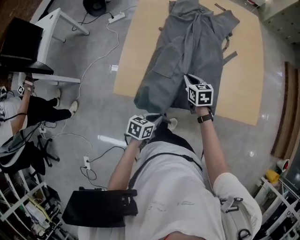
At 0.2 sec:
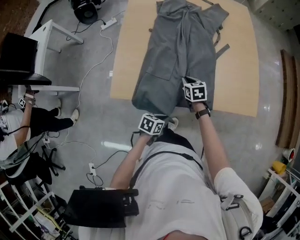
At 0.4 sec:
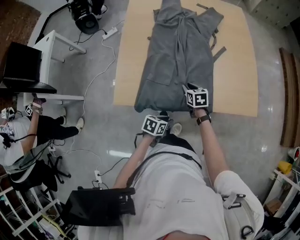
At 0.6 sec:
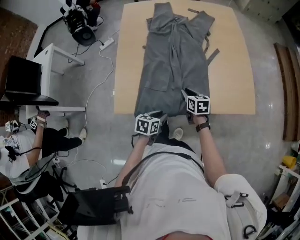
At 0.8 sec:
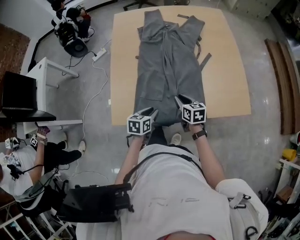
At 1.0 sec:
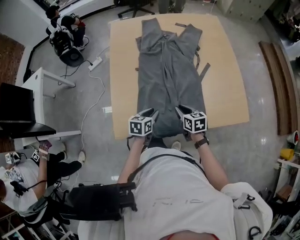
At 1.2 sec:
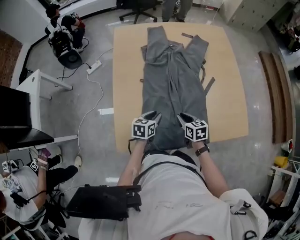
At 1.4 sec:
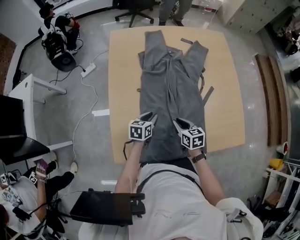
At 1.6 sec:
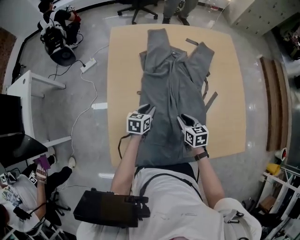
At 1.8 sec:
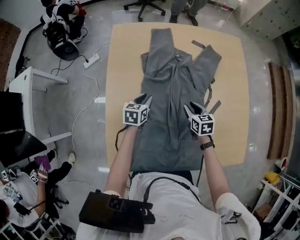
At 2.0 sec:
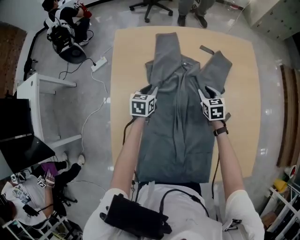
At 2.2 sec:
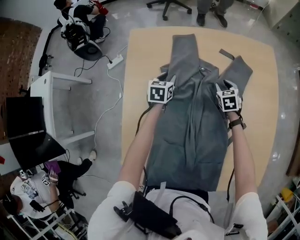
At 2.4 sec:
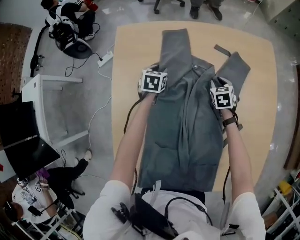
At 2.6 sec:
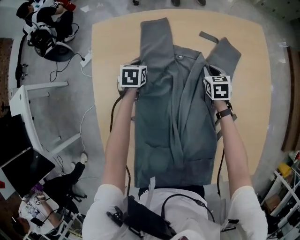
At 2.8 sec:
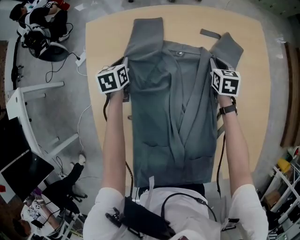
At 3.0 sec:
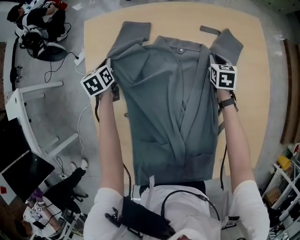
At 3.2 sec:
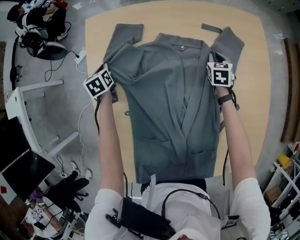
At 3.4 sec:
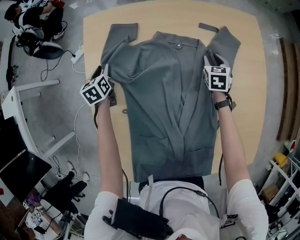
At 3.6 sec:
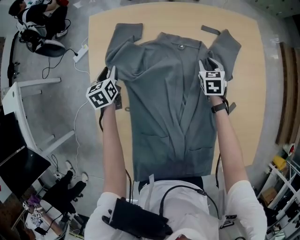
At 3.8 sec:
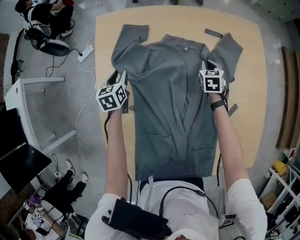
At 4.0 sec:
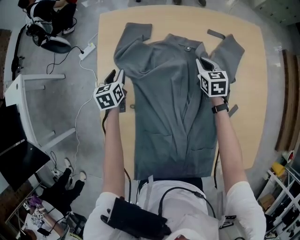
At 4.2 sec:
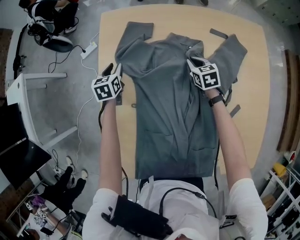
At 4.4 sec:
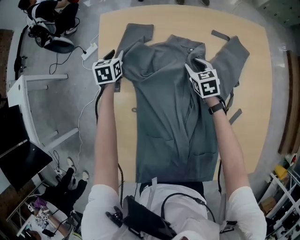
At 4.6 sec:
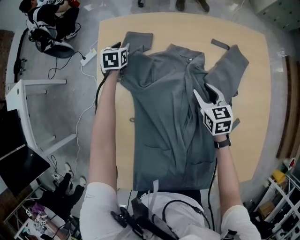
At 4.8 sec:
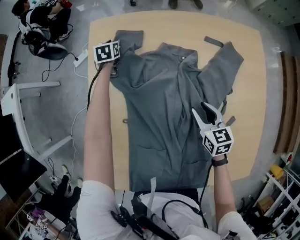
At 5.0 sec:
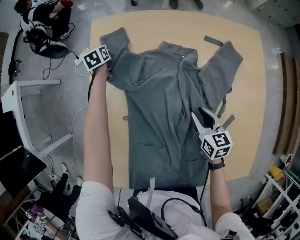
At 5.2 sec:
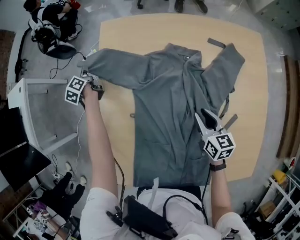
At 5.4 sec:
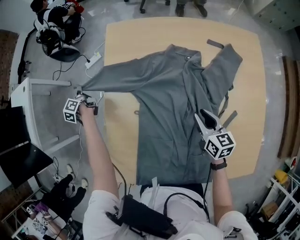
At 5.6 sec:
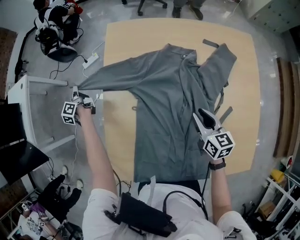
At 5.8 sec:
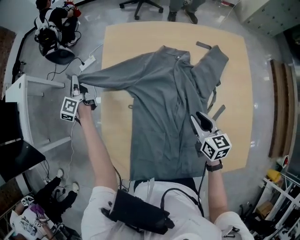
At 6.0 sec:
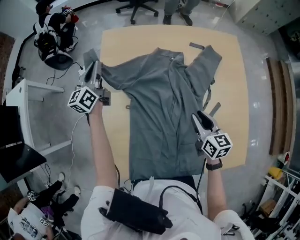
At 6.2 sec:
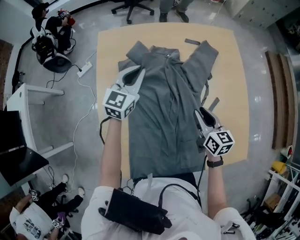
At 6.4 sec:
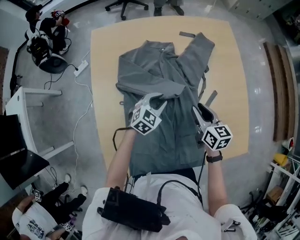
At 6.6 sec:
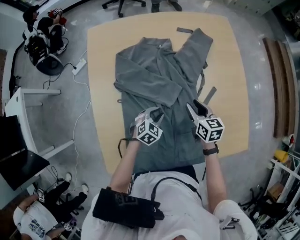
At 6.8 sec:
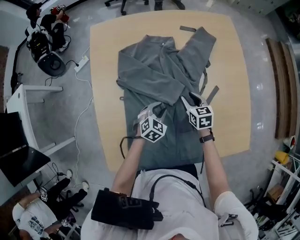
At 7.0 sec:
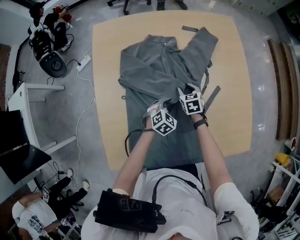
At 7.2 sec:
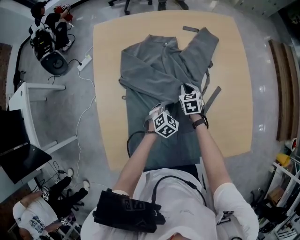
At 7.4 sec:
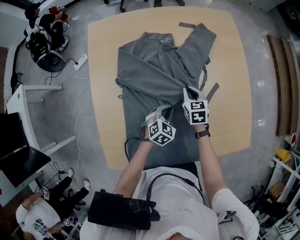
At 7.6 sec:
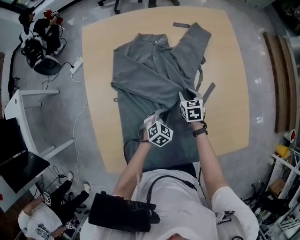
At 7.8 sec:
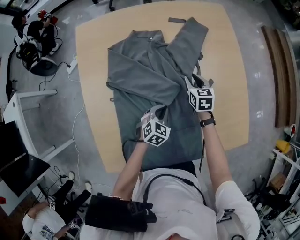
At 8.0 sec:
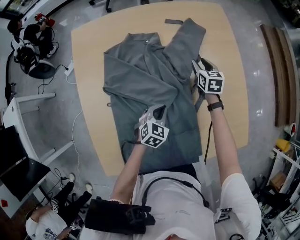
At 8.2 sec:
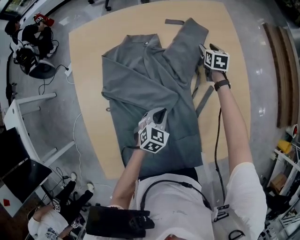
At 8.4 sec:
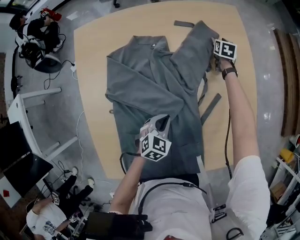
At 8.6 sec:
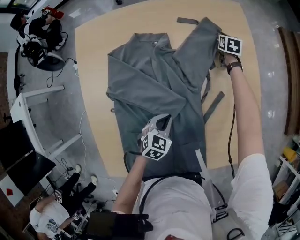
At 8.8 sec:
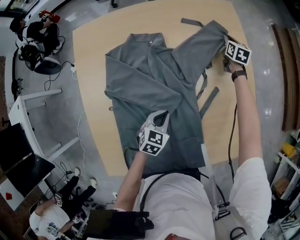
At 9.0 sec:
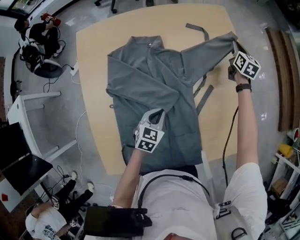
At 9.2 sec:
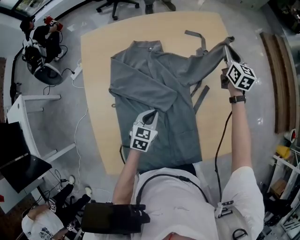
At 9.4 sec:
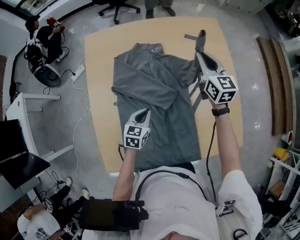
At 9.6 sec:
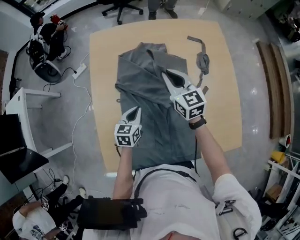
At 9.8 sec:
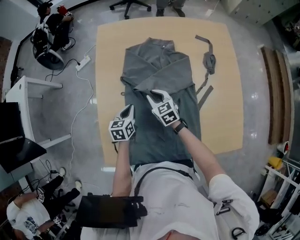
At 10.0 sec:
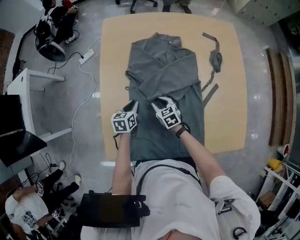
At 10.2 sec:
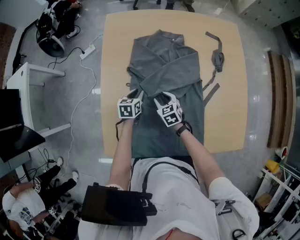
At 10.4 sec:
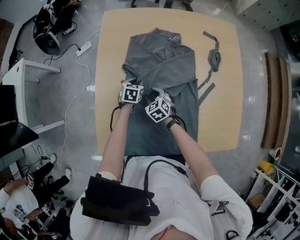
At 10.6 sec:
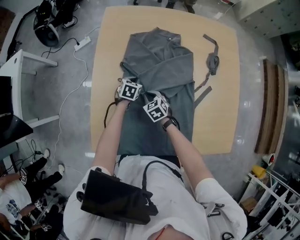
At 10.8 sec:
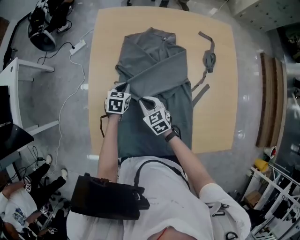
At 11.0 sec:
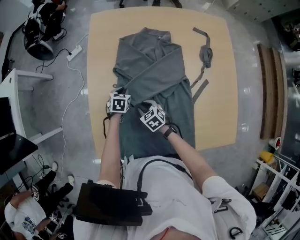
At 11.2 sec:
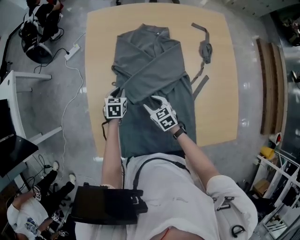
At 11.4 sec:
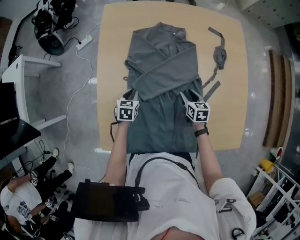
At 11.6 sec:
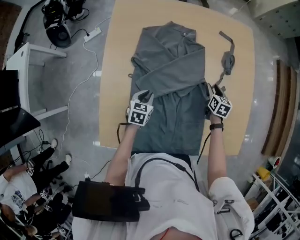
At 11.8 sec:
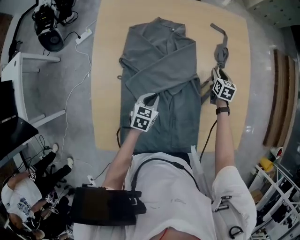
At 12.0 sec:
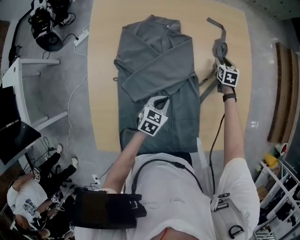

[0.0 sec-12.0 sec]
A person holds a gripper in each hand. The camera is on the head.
0.0 sec to 1.6 sec: The right gripper shifts roughly 15 cm forward. Meanwhile the left gripper travels forward by some 40 cm, and opens its fingers.
1.6 sec to 3.0 sec: The right gripper travels forward by approximately 40 cm, and swivels some 20 degrees; the left gripper travels forward and to the left by approximately 35 cm, and swivels roughly 30 degrees.
3.0 sec to 4.4 sec: The right gripper shifts roughly 15 cm to the left, and swivels approximately 20 degrees. Meanwhile the left gripper reaches approximately 10 cm backward, then returns, and opens its fingers.
4.4 sec to 6.0 sec: The right gripper moves backward and upward, about 30 cm, and changes its angle by about 30 degrees. Meanwhile the left gripper moves left and right over roughly 35 cm, changing direction 2 times, tilts its fingers about 40 degrees upward, and closes its fingers.
6.0 sec to 7.6 sec: The right gripper goes up and down, some 20 cm each way, reversing 2 times, and changes its angle by about 30 degrees, while the left gripper moves roughly 50 cm, points its fingers approximately 50 degrees further downward, and opens and closes again.
7.6 sec to 9.0 sec: The right gripper is displaced forward and to the right by approximately 35 cm, and swivels some 30 degrees. Meanwhile the left gripper goes about 5 cm upward.
9.0 sec to 10.4 sec: The right gripper shifts by some 60 cm, and rotates some 60 degrees. The left gripper shifts by roughly 20 cm, swivels roughly 30 degrees, and opens up.
10.4 sec to 12.0 sec: The left gripper swings up and down, approximately 5 cm each way, with 2 reversals, rotates approximately 20 degrees, and closes. The right gripper goes upward and returns, roughly 5 cm each way, and swivels roughly 40 degrees.

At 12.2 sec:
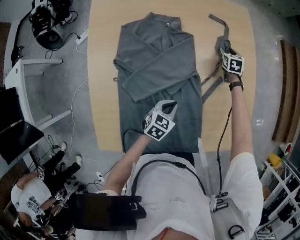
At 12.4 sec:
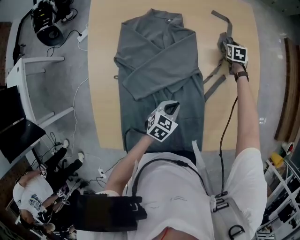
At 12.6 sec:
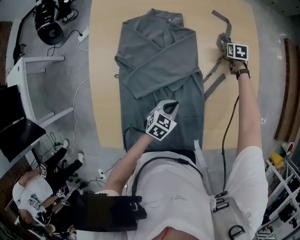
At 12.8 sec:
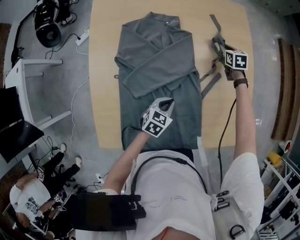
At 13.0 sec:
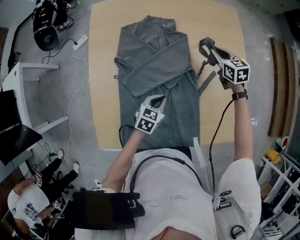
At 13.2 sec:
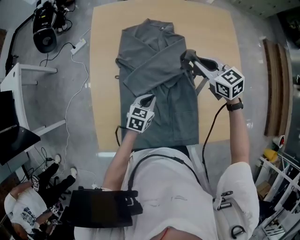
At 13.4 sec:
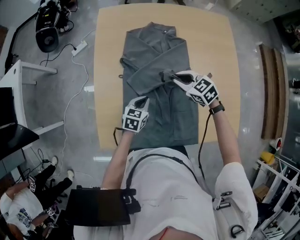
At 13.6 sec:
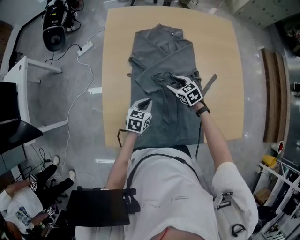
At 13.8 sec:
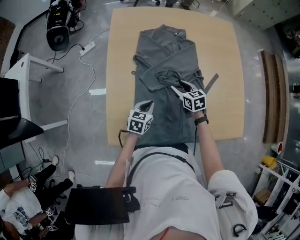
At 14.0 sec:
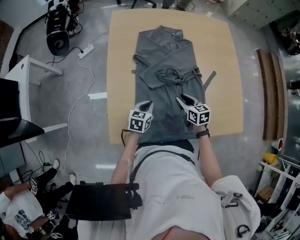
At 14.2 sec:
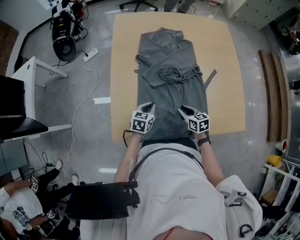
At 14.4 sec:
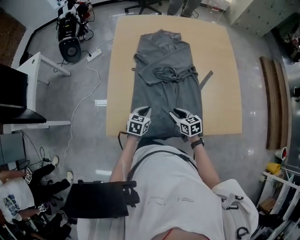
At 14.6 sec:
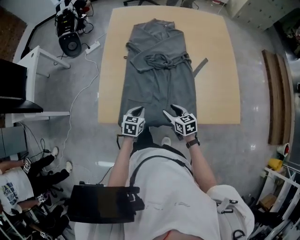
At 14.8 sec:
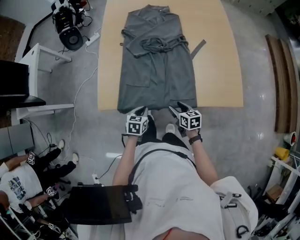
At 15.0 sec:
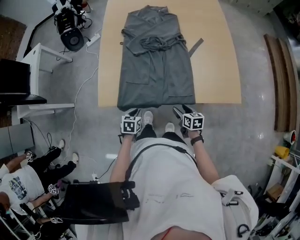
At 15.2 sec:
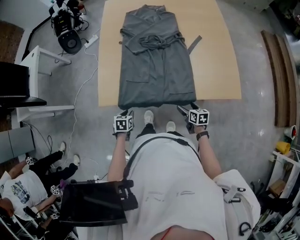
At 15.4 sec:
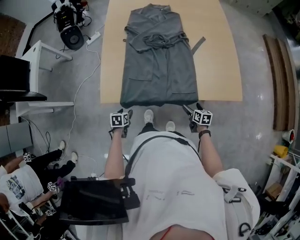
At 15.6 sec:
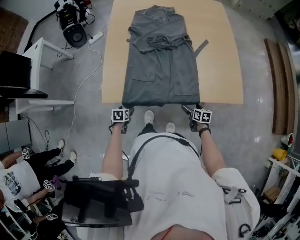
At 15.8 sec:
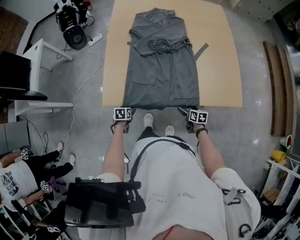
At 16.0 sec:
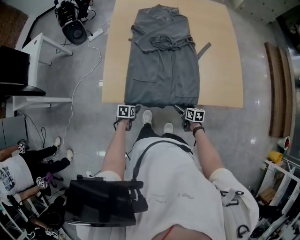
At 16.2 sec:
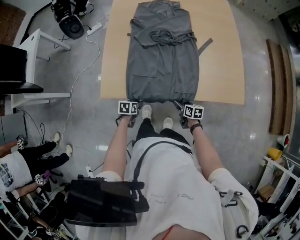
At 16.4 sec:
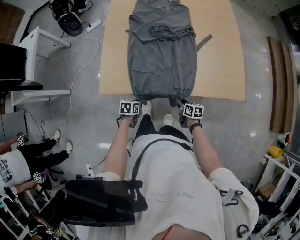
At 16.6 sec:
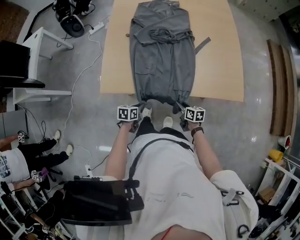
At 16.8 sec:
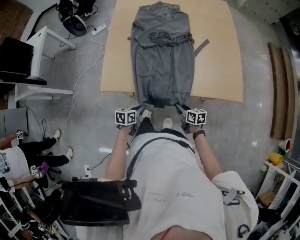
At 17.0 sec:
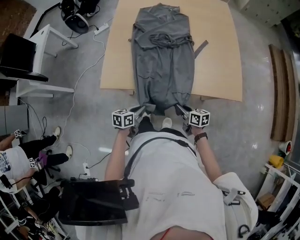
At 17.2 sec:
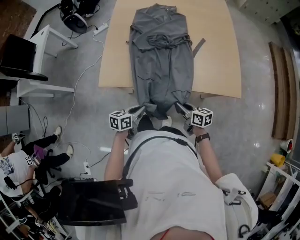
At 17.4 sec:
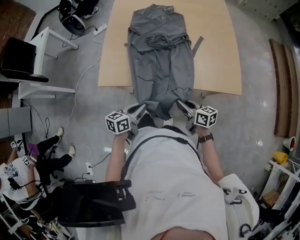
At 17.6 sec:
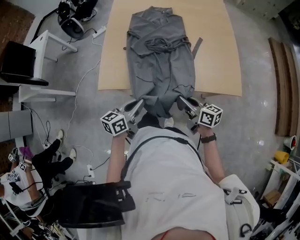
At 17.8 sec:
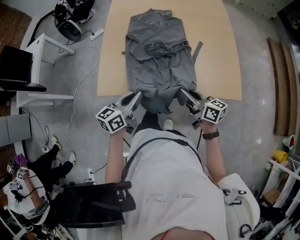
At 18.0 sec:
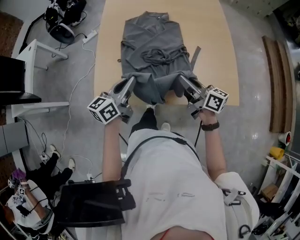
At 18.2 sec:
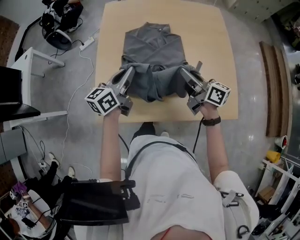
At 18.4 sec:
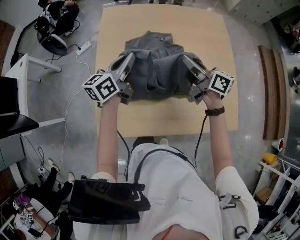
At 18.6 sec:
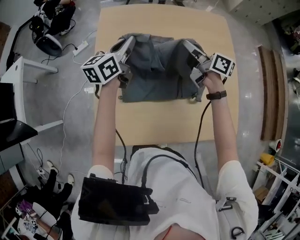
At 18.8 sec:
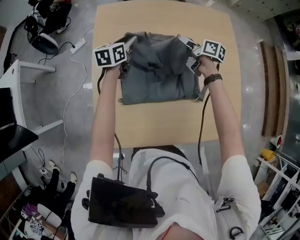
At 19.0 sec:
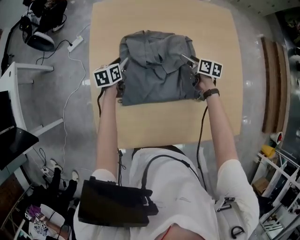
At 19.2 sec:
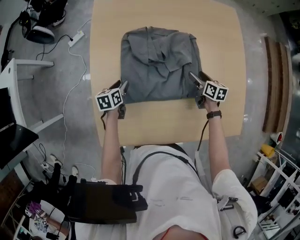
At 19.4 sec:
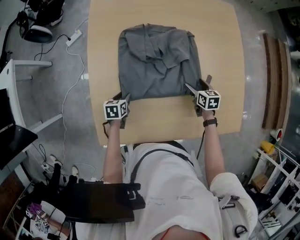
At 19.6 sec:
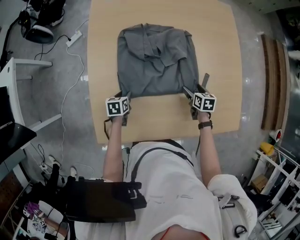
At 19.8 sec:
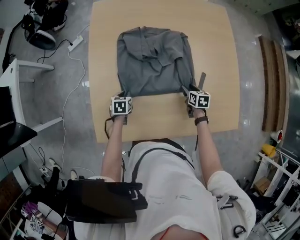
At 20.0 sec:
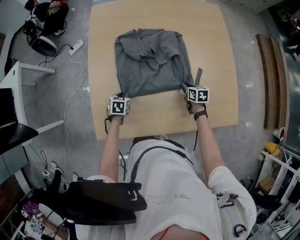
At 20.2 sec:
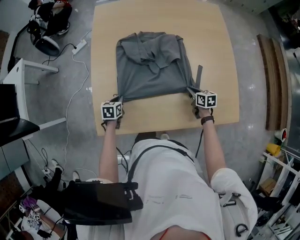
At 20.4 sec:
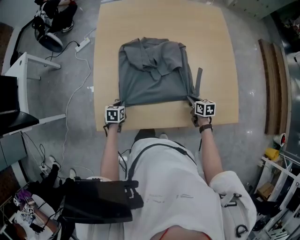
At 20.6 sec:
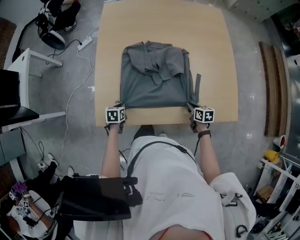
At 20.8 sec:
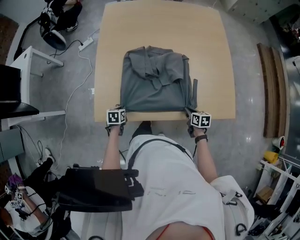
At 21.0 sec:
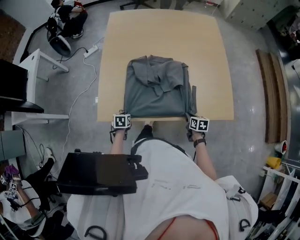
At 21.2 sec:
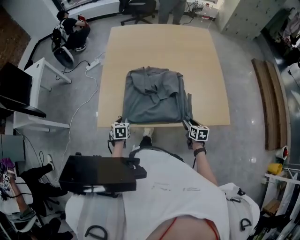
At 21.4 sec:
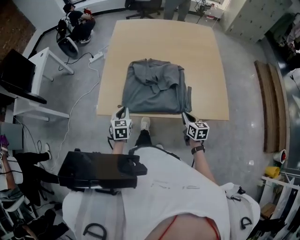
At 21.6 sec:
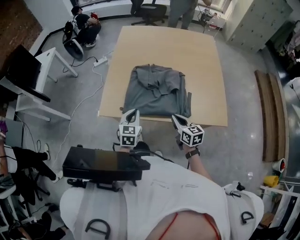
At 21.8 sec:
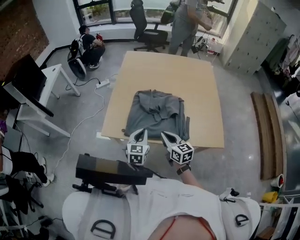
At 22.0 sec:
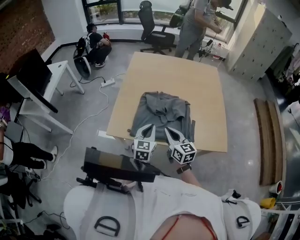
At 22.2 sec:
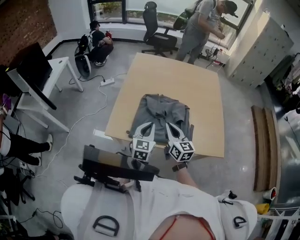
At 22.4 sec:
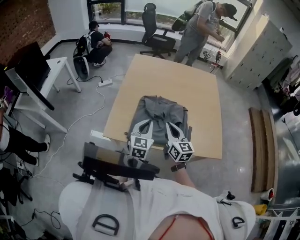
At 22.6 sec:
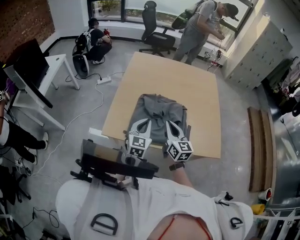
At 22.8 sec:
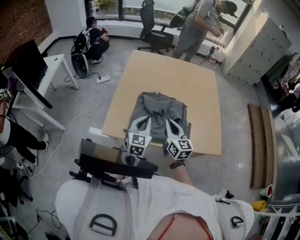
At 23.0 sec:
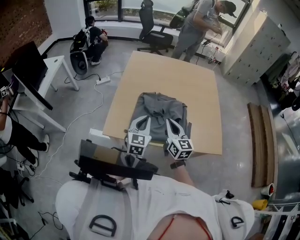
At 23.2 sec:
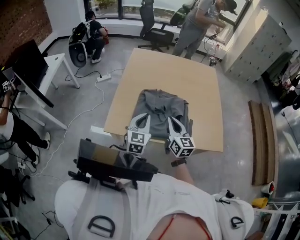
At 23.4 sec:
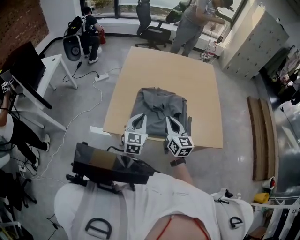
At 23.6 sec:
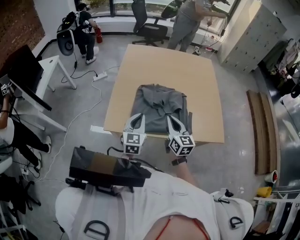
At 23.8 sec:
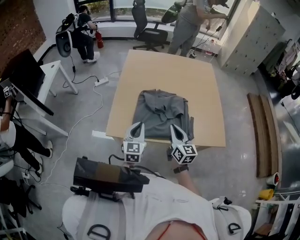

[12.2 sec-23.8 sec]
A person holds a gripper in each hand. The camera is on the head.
12.2 sec to 13.6 sec: The right gripper moves some 25 cm upward and comes back, and turns by about 40 degrees. The left gripper changes place by approximately 20 cm.
13.6 sec to 15.0 sec: Both grippers travel together backward, approximately 35 cm. The right gripper swivels roughly 40 degrees.
15.0 sec to 16.6 sec: The right gripper travels to the right and back again, approximately 5 cm each way, and closes its fingers. The left gripper is displaced downward by roughly 5 cm, goes to the left and returns, roughly 10 cm each way, rotates about 20 degrees, and opens and closes again.
16.6 sec to 18.0 sec: Both grippers travel together upward and forward, about 35 cm. The right gripper tilts its fingers some 30 degrees upward, while the left gripper tilts its fingers approximately 40 degrees upward.
18.0 sec to 19.4 sec: The two grippers go about 35 cm downward and forward. The right gripper angles its fingers downward, by some 50 degrees, and opens, while the left gripper points its fingers some 50 degrees further downward, and opens up.
19.4 sec to 21.0 sec: Both grippers travel together backward, some 25 cm. The right gripper closes. Meanwhile the left gripper closes its fingers.
21.0 sec to 22.4 sec: The left gripper is displaced upward by roughly 35 cm, and angles its fingers upward, by some 50 degrees, while the right gripper shifts about 35 cm upward and to the left, angles its fingers upward, by approximately 50 degrees, and opens, then closes once more.
22.4 sec to 23.8 sec: The left gripper moves to the left, some 5 cm. The right gripper changes place by roughly 5 cm.
